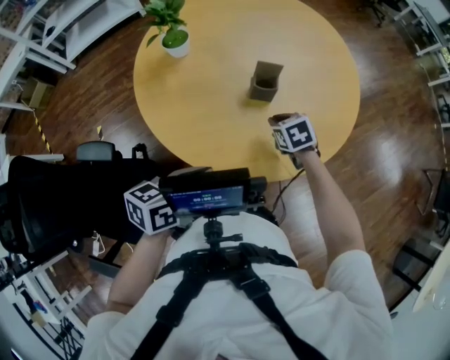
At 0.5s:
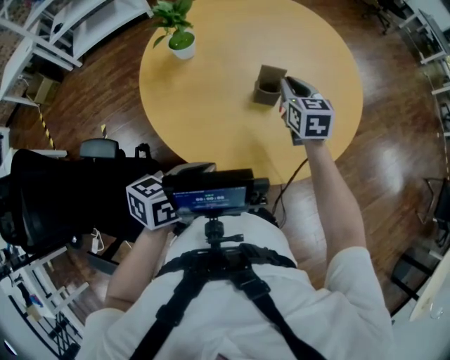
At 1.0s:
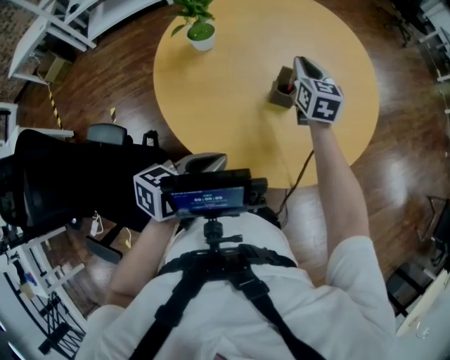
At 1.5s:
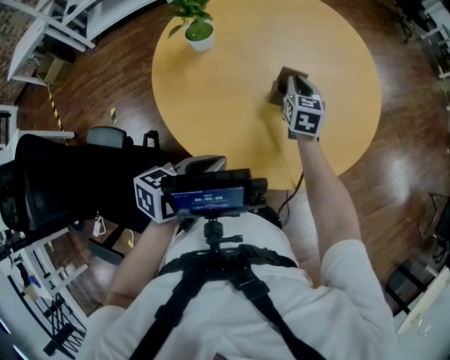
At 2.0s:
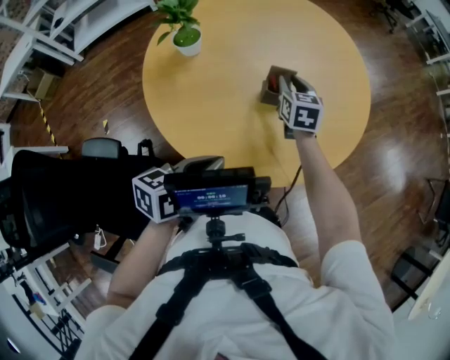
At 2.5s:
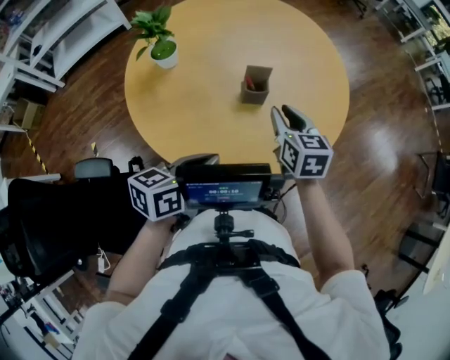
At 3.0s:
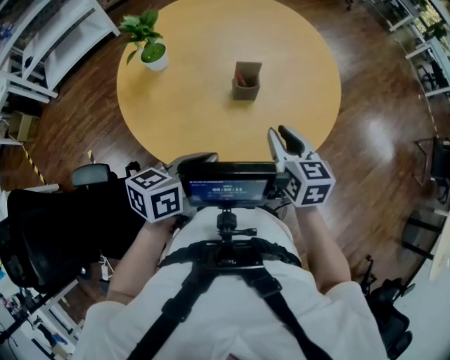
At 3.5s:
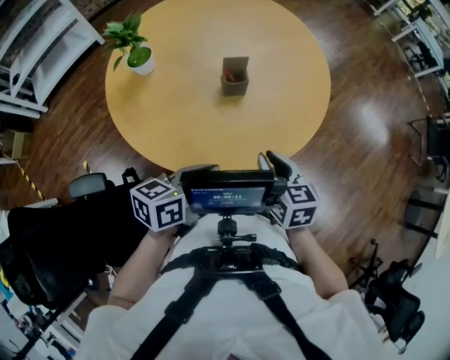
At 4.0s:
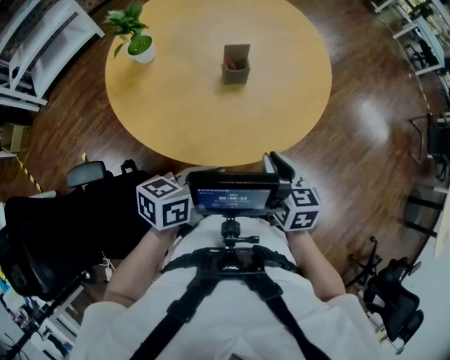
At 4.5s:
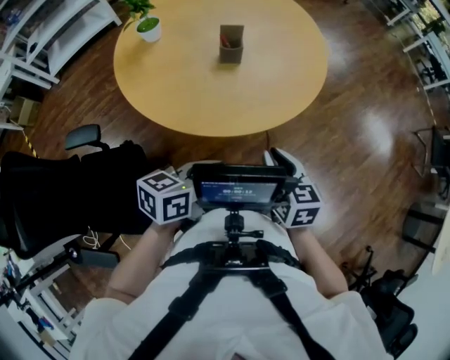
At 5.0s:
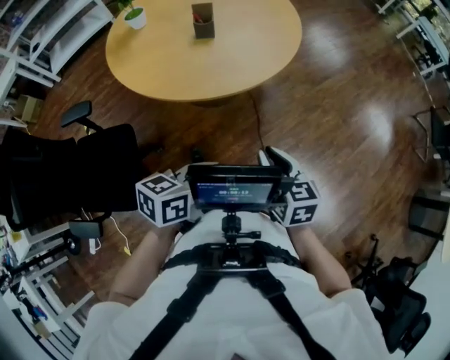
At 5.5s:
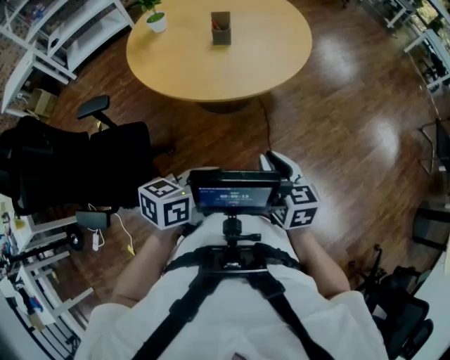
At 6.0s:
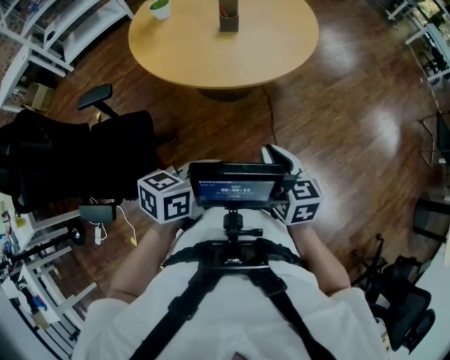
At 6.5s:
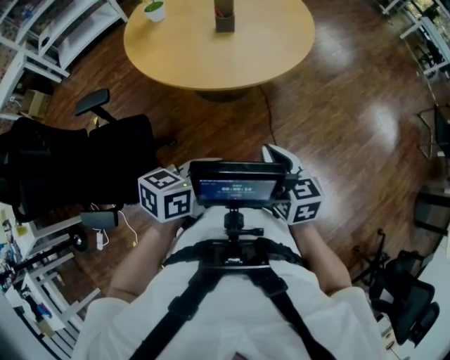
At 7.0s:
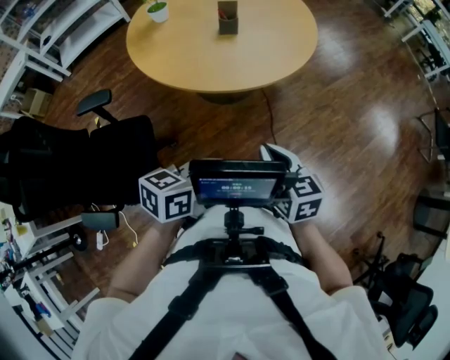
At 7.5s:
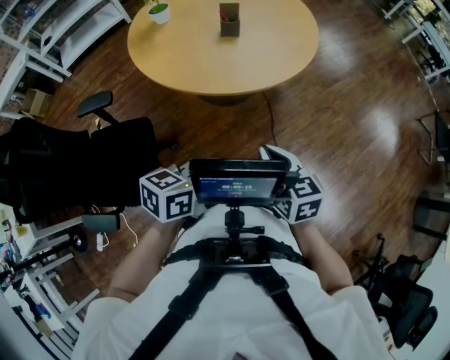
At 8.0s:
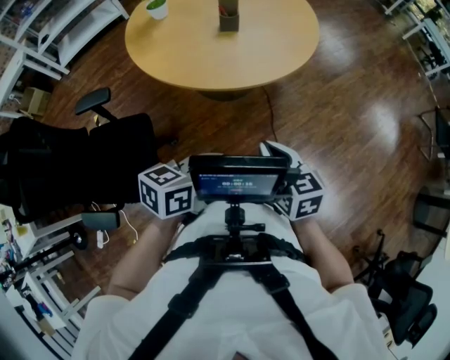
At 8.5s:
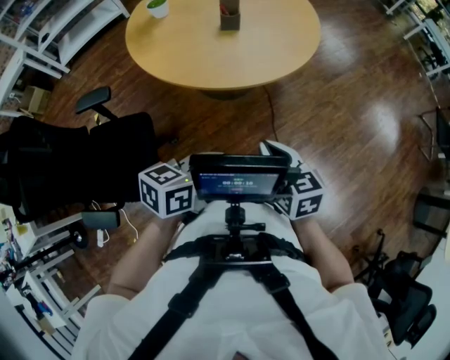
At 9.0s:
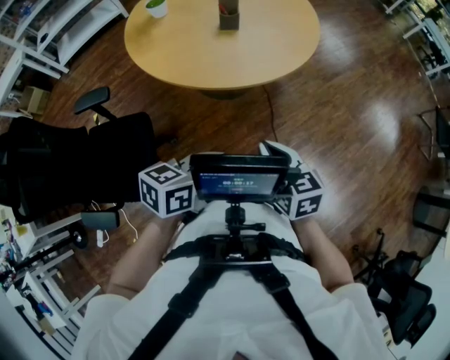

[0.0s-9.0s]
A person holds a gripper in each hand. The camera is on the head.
0.0s to 2.0s: The right gripper goes some 15 cm forward and upward, and changes its angle by some 40 degrees.
2.0s to 4.5s: The left gripper goes some 20 cm to the right and backward. Meanwhile the right gripper goes about 40 cm backward and to the right.
4.5s to 7.0s: The two grippers go approximately 15 cm backward.
7.0s to 9.0s: The two grippers keep their place.

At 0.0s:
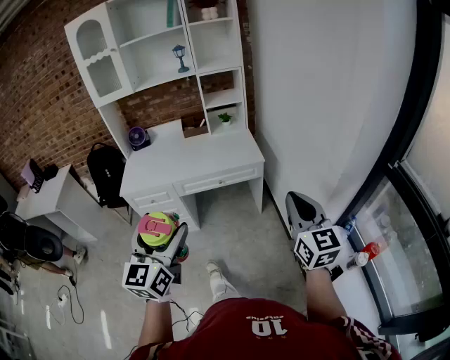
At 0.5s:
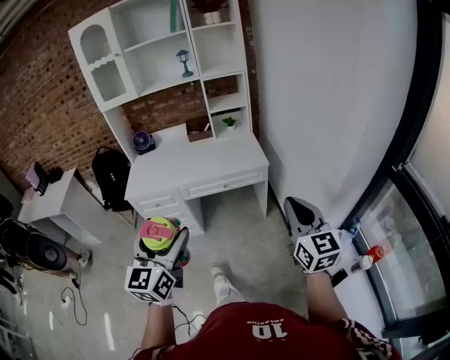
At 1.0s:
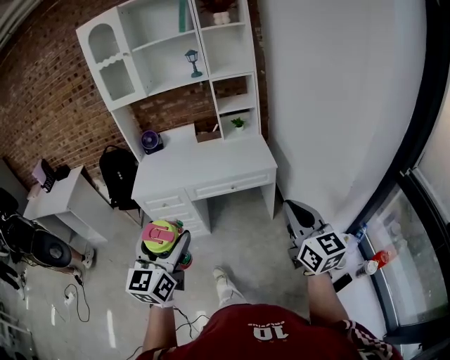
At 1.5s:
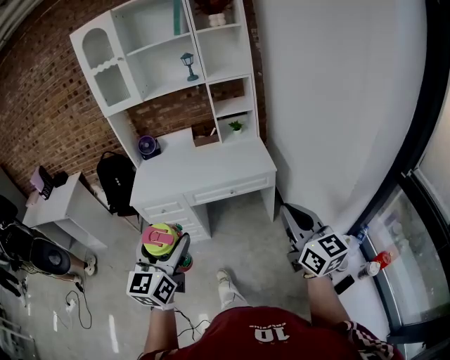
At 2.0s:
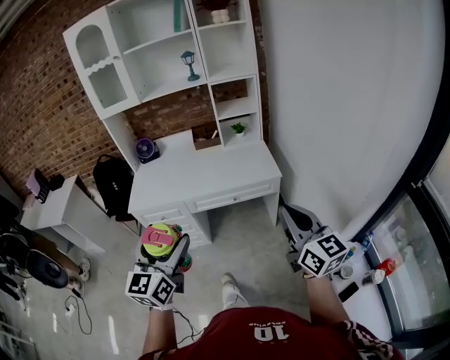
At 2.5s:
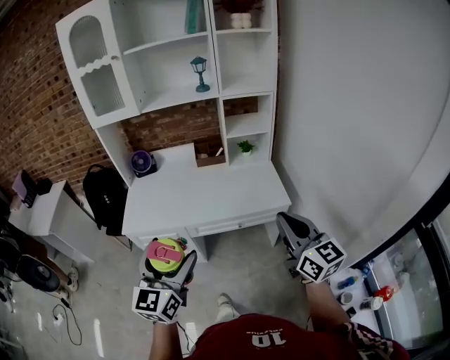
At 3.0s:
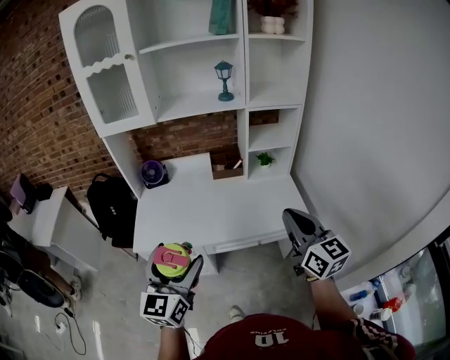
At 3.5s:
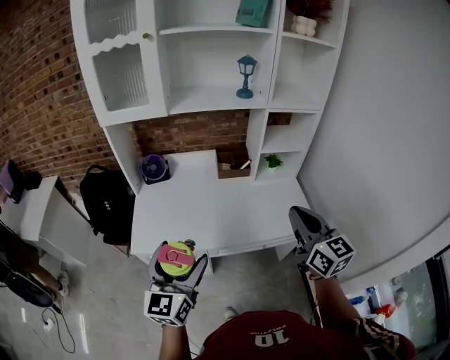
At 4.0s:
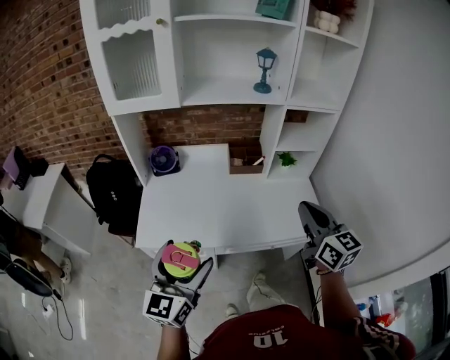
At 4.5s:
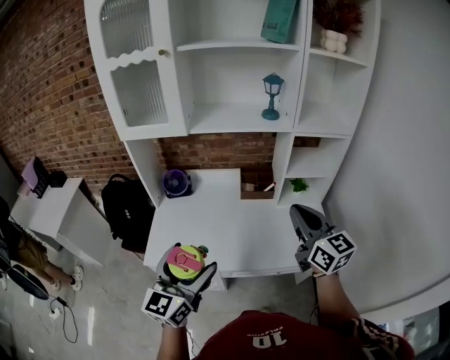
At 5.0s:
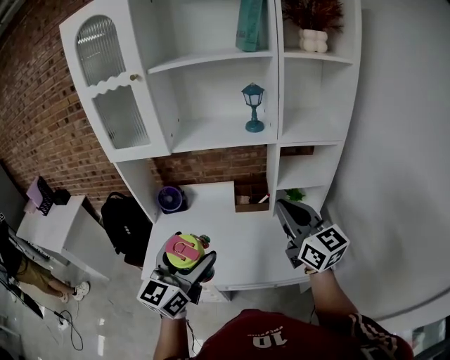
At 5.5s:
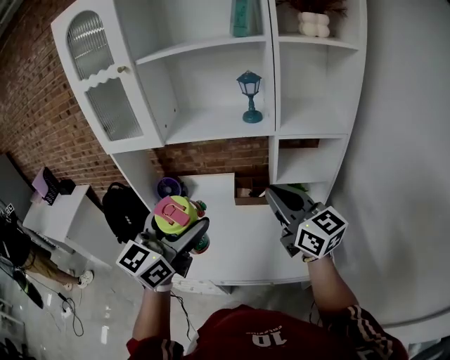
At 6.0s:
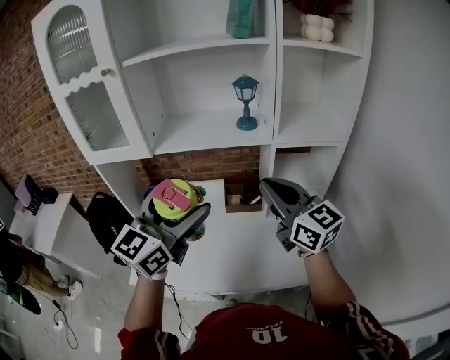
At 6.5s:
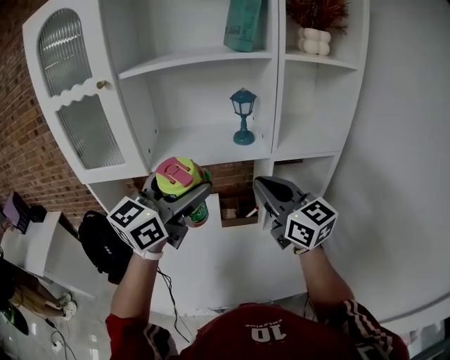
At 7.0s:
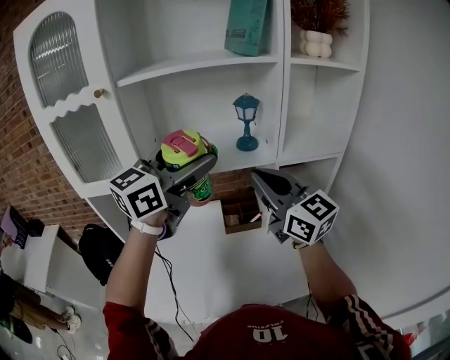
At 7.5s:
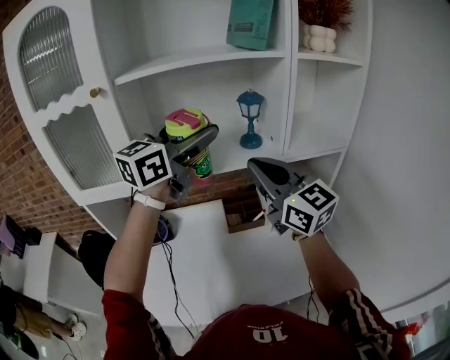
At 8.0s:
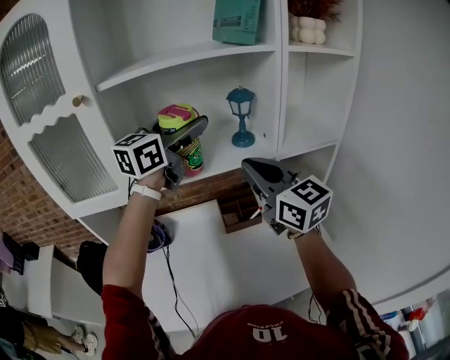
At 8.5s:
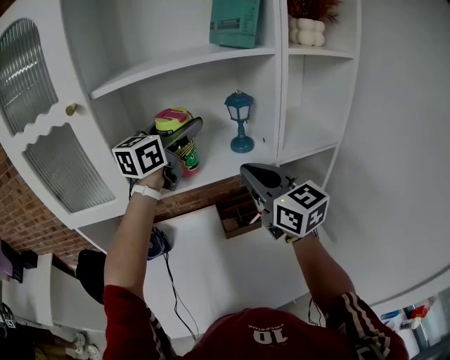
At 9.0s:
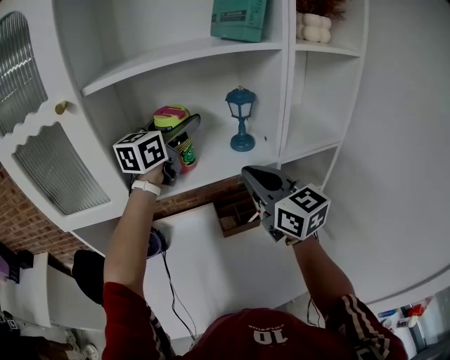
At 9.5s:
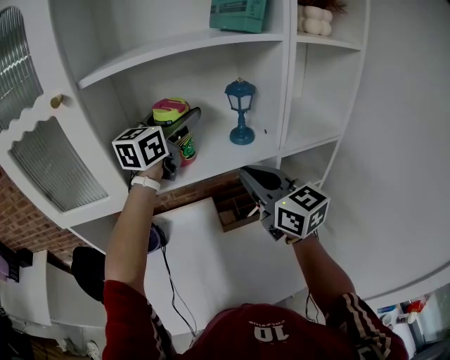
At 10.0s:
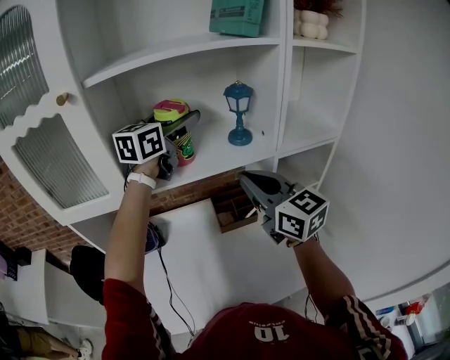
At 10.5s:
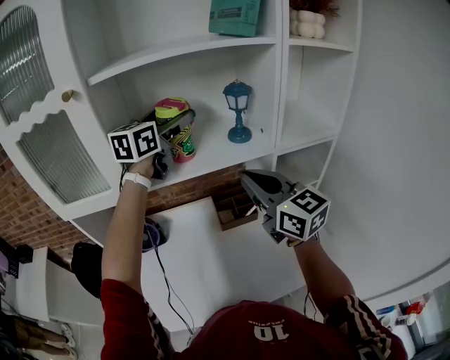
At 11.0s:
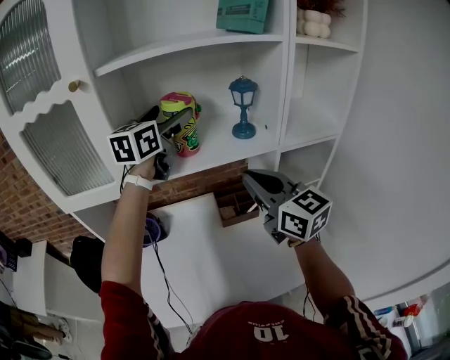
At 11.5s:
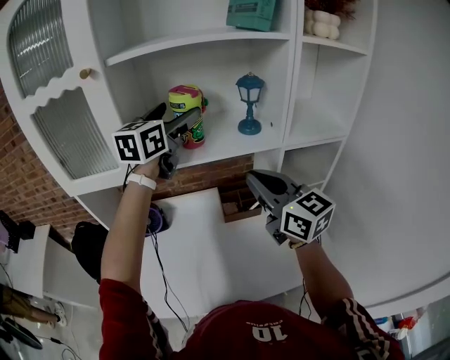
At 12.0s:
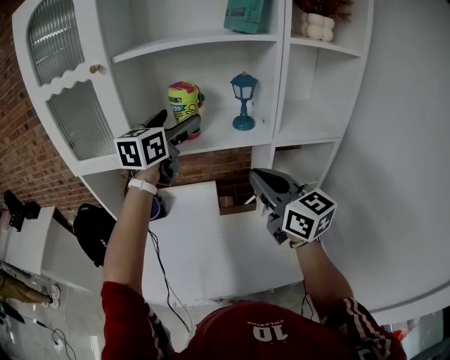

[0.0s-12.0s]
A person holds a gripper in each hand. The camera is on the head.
0.0s to 2.0s: The left gripper heads forward, covering approximately 10 cm. Meanwhile the right gripper is displaced forward and to the left by about 10 cm.
2.0s to 4.0s: Both grippers travel together forward and to the left, roughly 40 cm.
4.0s to 6.0s: The left gripper shifts approximately 35 cm forward, upward and to the right. Meanwhile the right gripper travels forward and upward by approximately 20 cm, and rotates some 20 degrees.
6.0s to 8.0s: The right gripper moves forward and to the left, roughly 15 cm; the left gripper is displaced forward by approximately 25 cm.
8.0s to 10.0s: The left gripper is displaced forward by roughly 10 cm.
10.0s to 12.0s: The grippers both shift backward by approximately 10 cm.

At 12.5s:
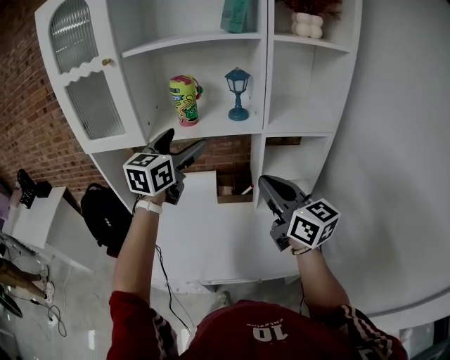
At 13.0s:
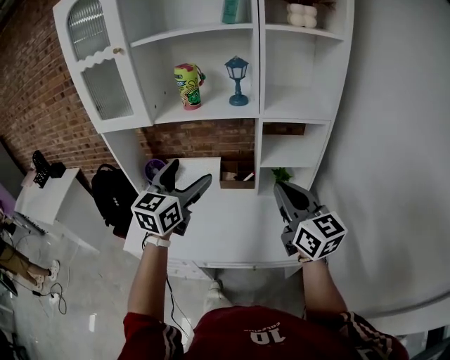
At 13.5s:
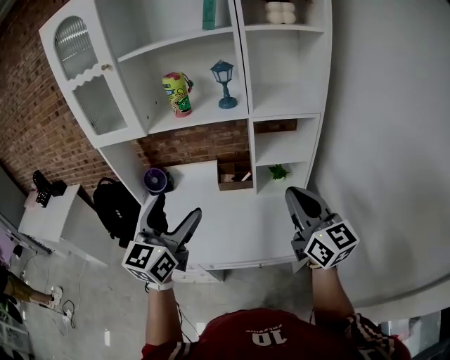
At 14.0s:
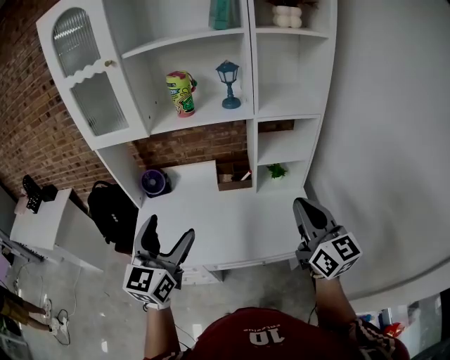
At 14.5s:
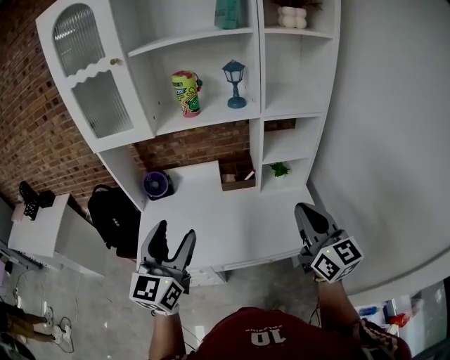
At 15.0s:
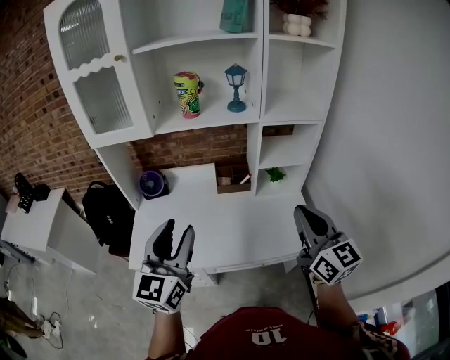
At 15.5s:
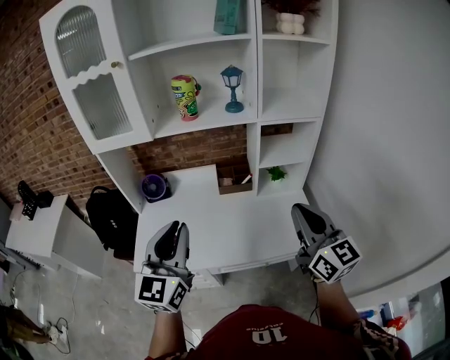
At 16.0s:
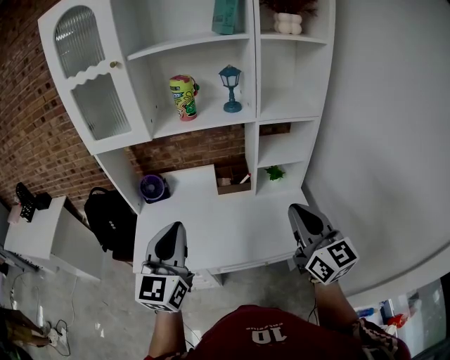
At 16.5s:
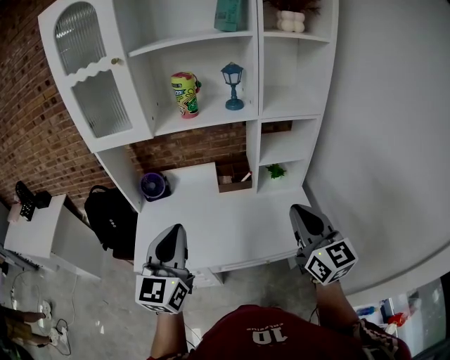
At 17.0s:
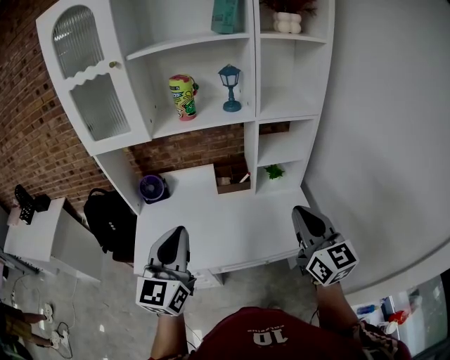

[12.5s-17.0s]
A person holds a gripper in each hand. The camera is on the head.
12.5s to 14.5s: The left gripper moves backward, roughly 30 cm. The right gripper is displaced backward by approximately 15 cm.
14.5s to 17.0s: The left gripper closes.

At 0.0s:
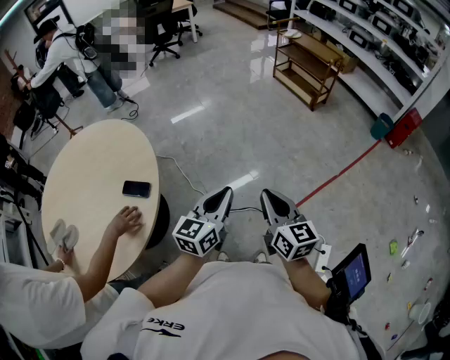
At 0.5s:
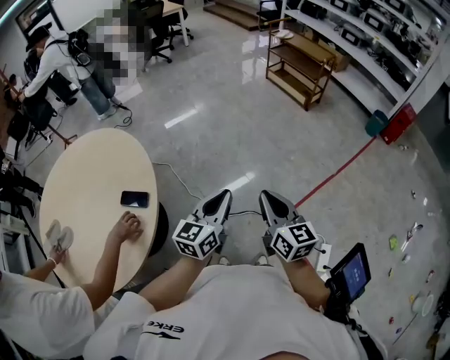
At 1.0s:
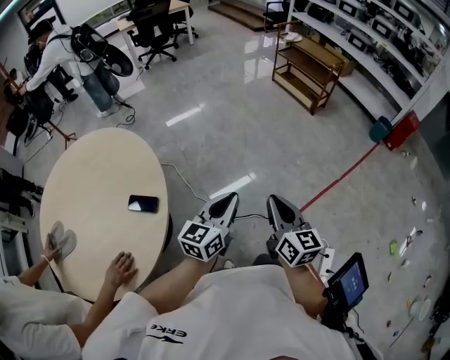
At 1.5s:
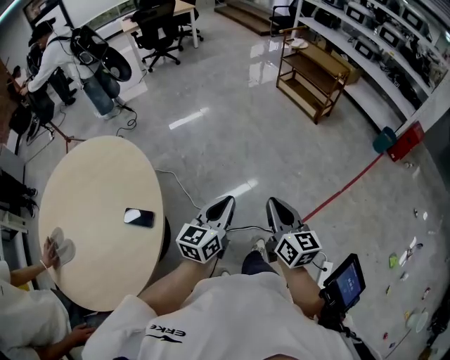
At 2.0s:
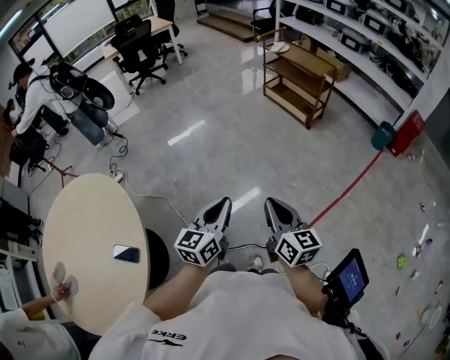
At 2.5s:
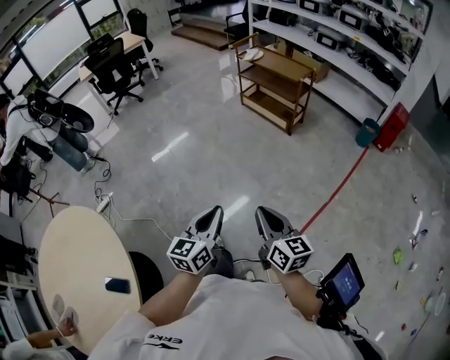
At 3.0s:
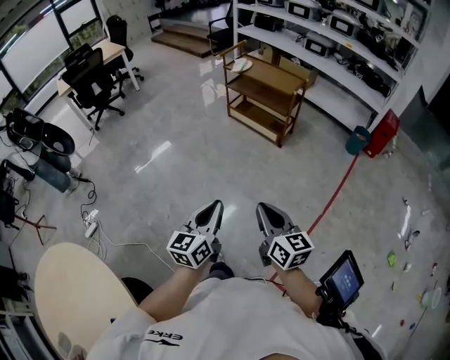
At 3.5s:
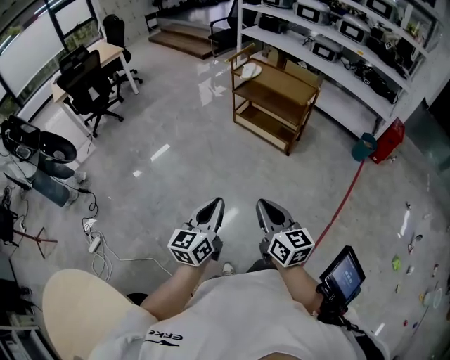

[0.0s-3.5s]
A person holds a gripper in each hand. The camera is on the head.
0.0s to 2.0s: The grippers both shift forward by about 25 cm.
2.0s to 3.5s: The two grippers go approximately 40 cm forward.
